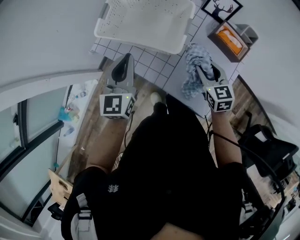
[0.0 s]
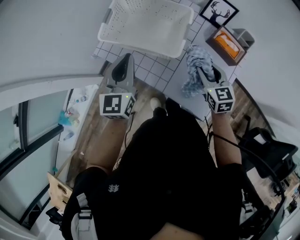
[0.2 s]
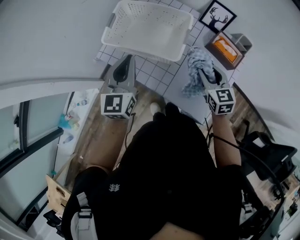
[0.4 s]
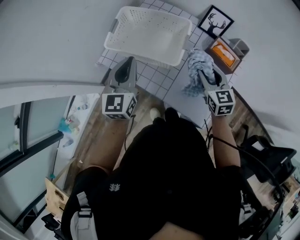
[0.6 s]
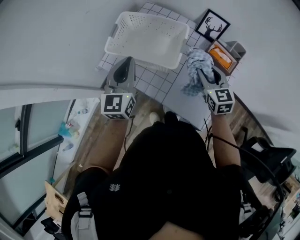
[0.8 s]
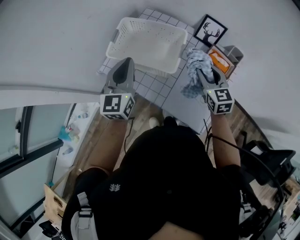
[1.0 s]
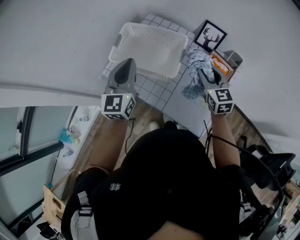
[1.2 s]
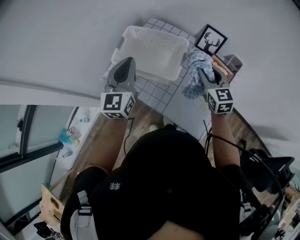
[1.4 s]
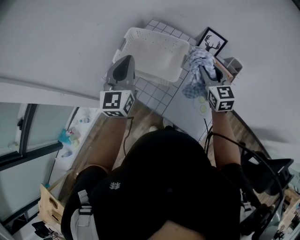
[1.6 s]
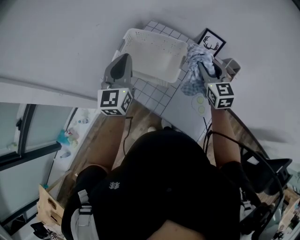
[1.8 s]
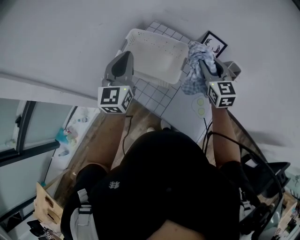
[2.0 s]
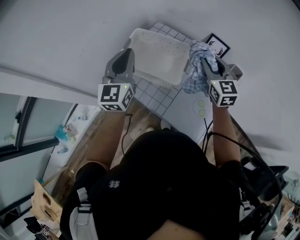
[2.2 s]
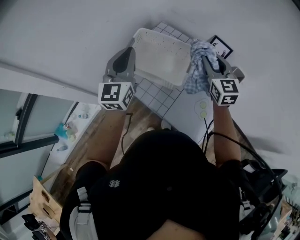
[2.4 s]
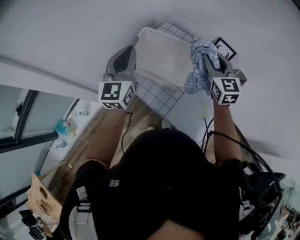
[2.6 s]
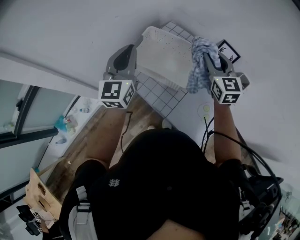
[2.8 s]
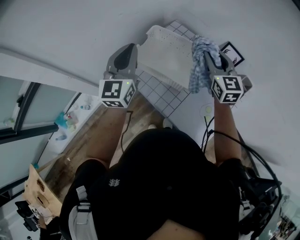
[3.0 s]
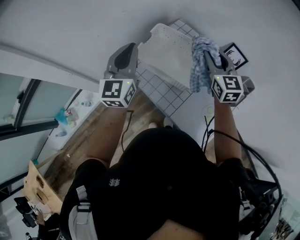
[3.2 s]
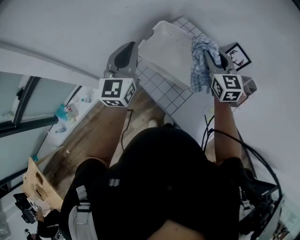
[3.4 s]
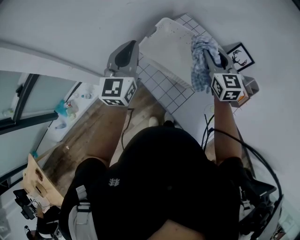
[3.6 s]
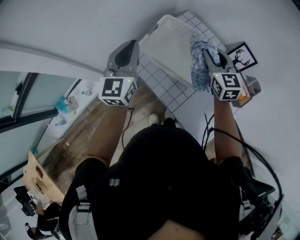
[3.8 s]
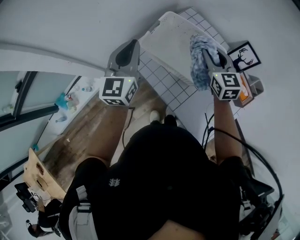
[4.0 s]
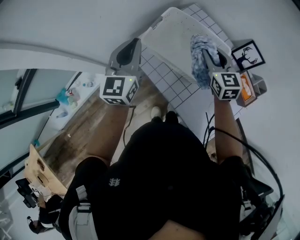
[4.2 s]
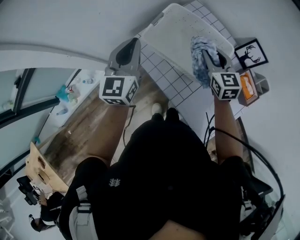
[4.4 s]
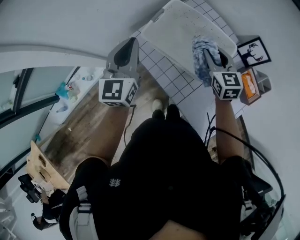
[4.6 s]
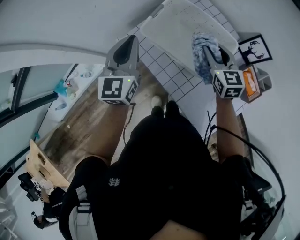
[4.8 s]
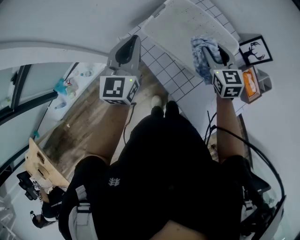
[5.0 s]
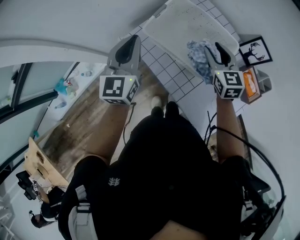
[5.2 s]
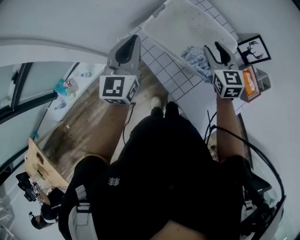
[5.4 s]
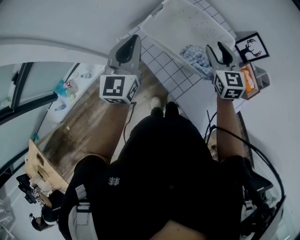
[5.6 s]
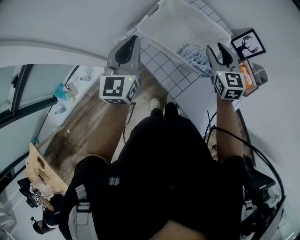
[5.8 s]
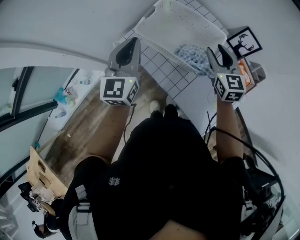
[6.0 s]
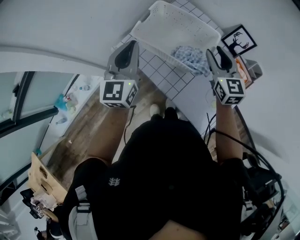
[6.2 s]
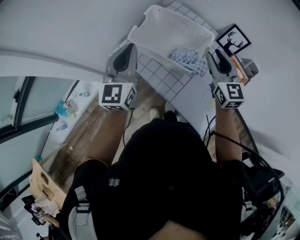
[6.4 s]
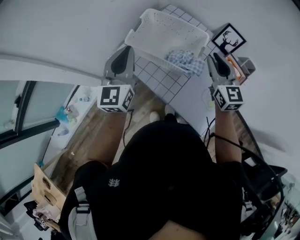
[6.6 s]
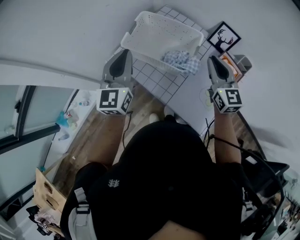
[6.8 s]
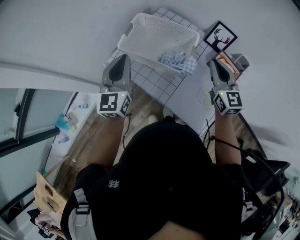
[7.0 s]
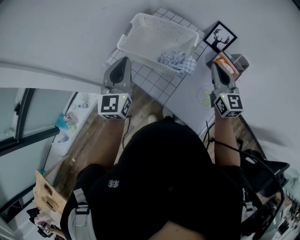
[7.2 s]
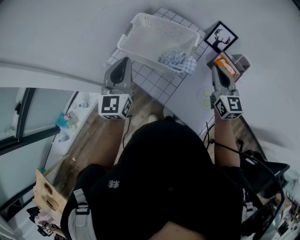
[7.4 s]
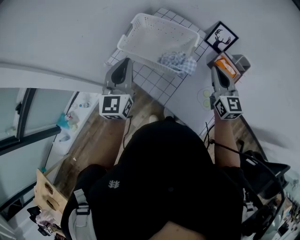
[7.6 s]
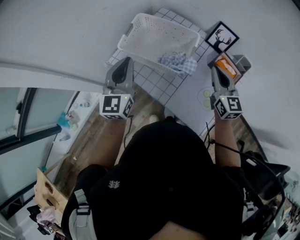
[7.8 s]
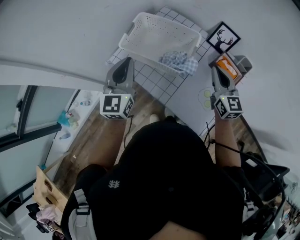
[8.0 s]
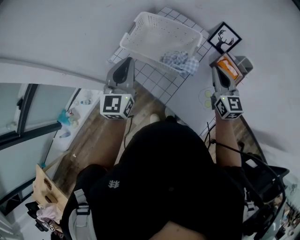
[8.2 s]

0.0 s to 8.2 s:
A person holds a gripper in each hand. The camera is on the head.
0.0 to 1.6 s: The left gripper shifts about 15 cm upward, while the right gripper heads upward and forward, covering some 20 cm.
1.6 to 3.2 s: The left gripper heads to the left, covering approximately 10 cm, while the right gripper shifts roughly 15 cm to the left, forward and upward.
3.2 to 5.0 s: The two grippers go about 15 cm downward.
5.0 to 6.6 s: The left gripper moves backward, upward and to the right, approximately 10 cm; the right gripper goes roughly 20 cm backward, upward and to the right, and turns by approximately 20 degrees.
6.6 to 8.2 s: The right gripper shifts approximately 5 cm to the right.

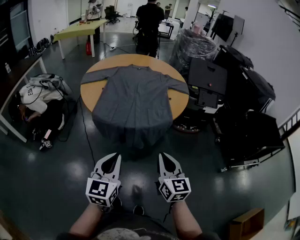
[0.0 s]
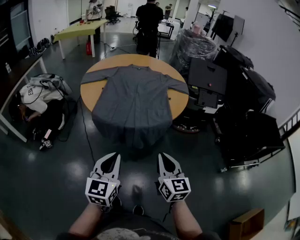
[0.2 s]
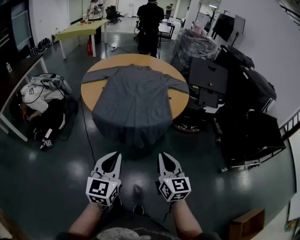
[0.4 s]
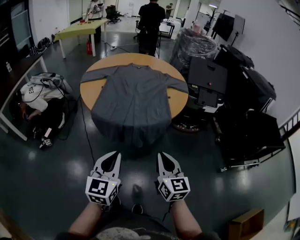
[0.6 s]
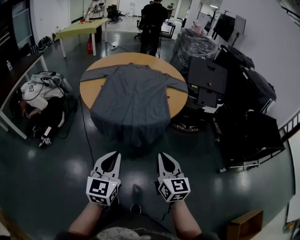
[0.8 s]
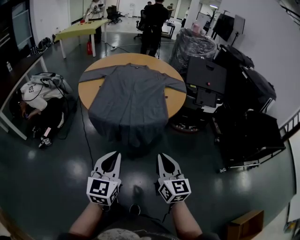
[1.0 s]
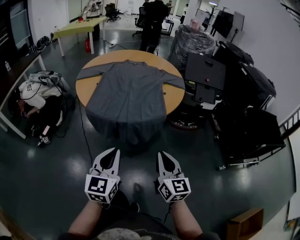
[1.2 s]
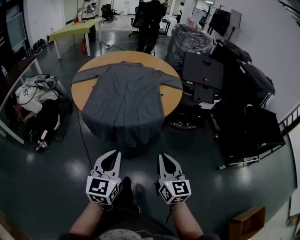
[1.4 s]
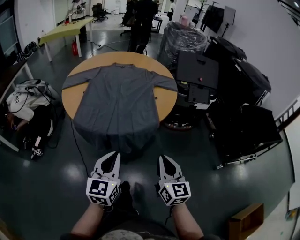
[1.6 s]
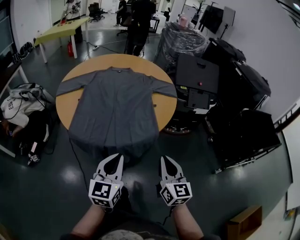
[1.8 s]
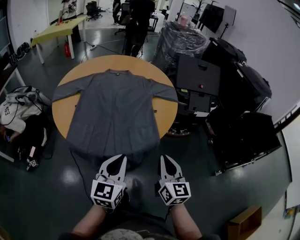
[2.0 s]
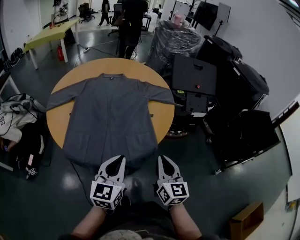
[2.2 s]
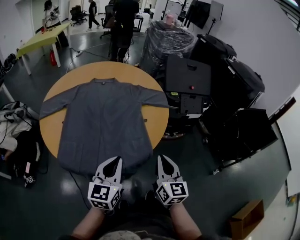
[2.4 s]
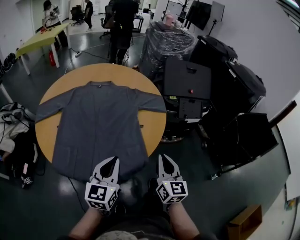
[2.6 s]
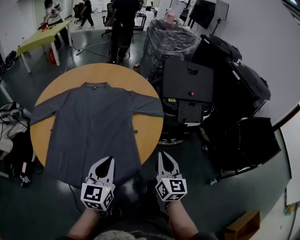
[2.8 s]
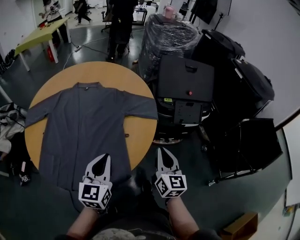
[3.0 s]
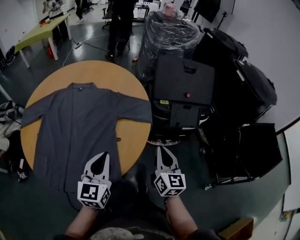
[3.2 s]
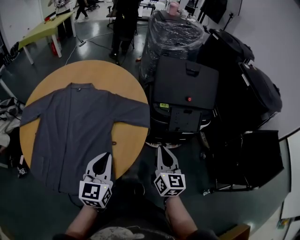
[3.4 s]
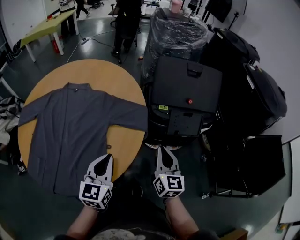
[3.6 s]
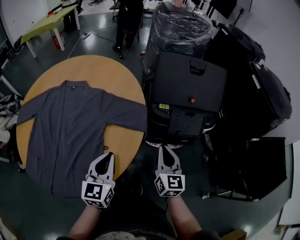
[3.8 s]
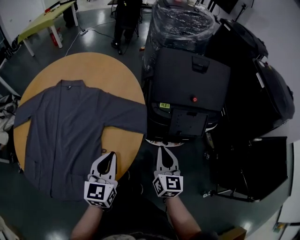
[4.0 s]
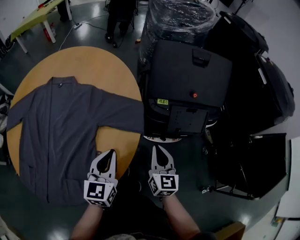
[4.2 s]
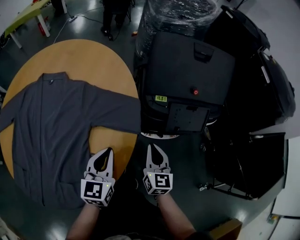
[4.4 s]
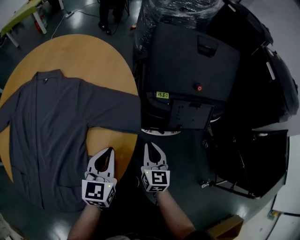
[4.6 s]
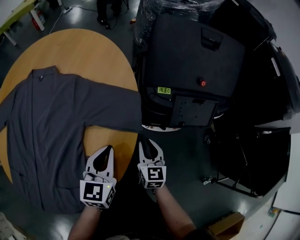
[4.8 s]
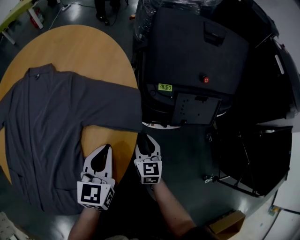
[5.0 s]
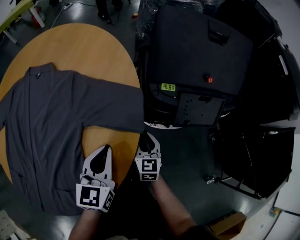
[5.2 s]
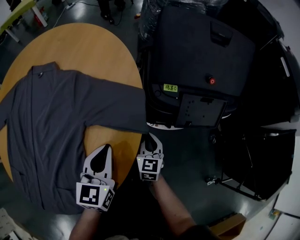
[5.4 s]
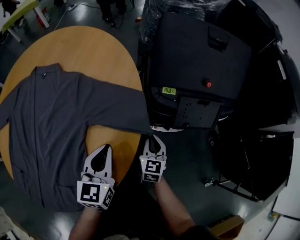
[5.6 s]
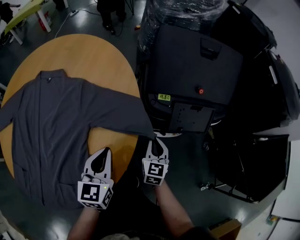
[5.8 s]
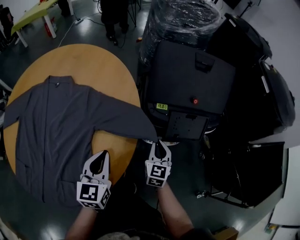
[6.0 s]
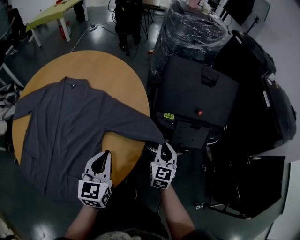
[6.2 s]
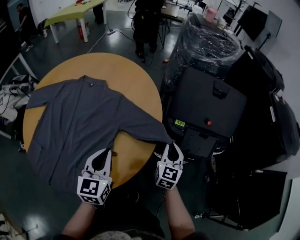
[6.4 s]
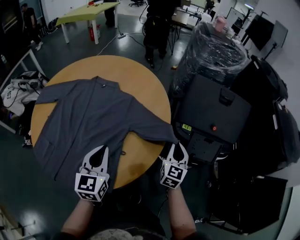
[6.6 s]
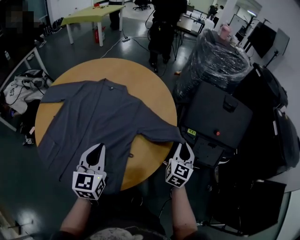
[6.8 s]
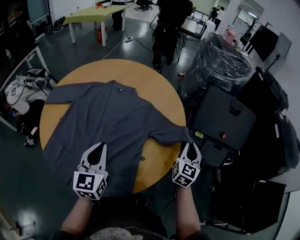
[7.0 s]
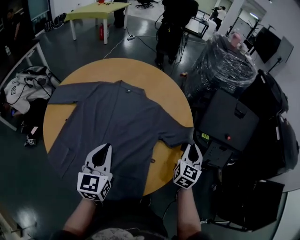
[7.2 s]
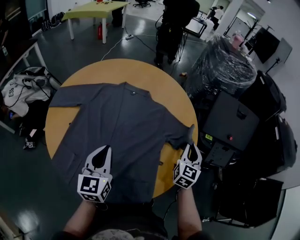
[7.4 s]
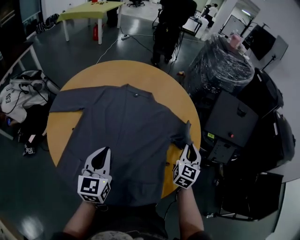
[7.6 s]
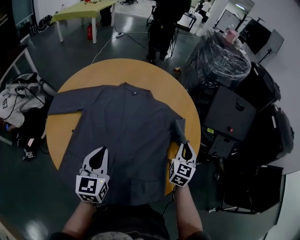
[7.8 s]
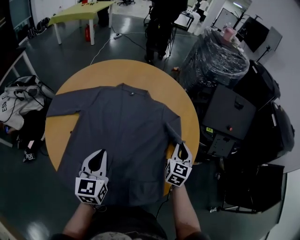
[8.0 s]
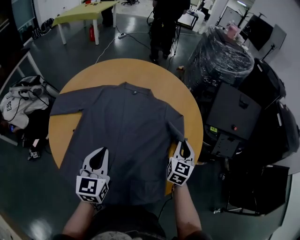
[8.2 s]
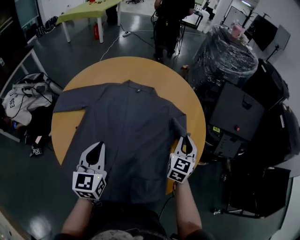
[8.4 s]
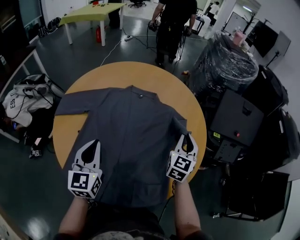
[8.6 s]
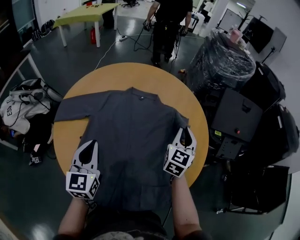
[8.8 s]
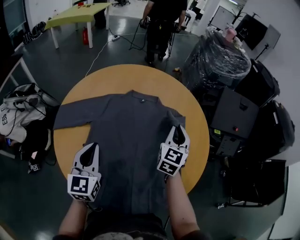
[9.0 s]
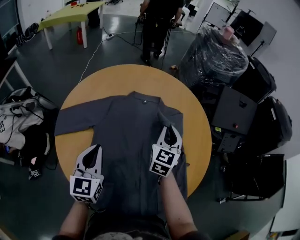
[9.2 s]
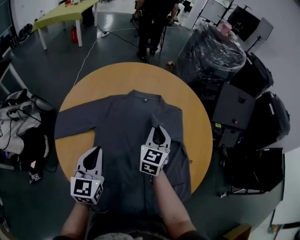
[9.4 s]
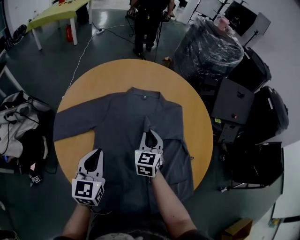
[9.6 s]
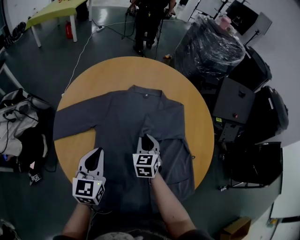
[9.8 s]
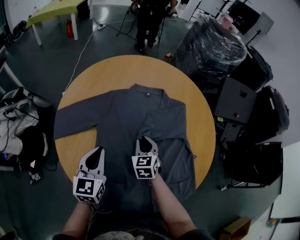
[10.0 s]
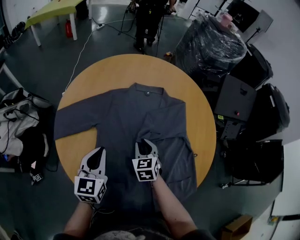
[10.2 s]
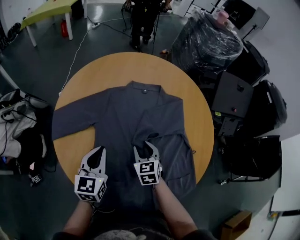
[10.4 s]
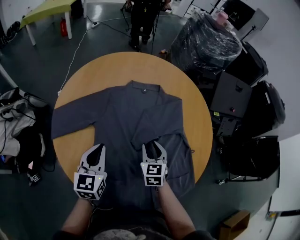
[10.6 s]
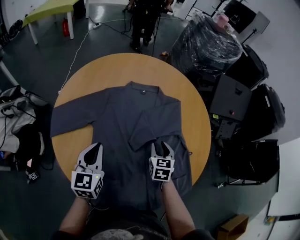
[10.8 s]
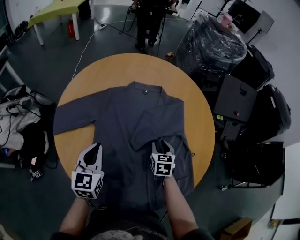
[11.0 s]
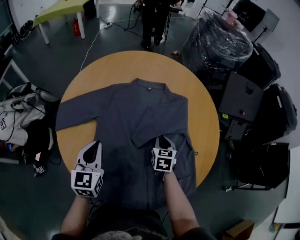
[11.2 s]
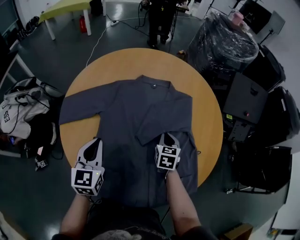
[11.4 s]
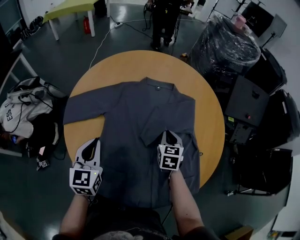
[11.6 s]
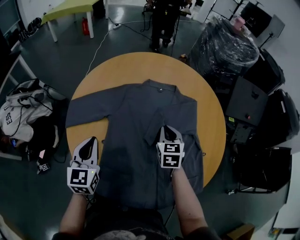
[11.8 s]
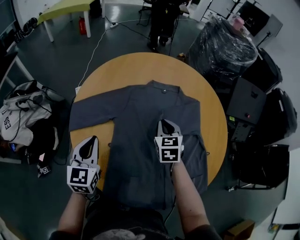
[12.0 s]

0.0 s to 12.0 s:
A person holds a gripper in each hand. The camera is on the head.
0.0 to 1.6 s: The right gripper goes roughly 10 cm to the right. The left gripper heads forward and to the right, covering approximately 10 cm.
1.6 to 3.0 s: Both grippers move forward, about 35 cm.
3.0 to 4.4 s: The left gripper shifts about 30 cm forward, to the right and downward; the right gripper goes roughly 30 cm forward, downward and to the right.
4.4 to 6.0 s: The right gripper moves some 15 cm downward and comes back, and opens and closes again.
6.0 to 7.6 s: The right gripper is displaced to the left and upward by approximately 30 cm. Meanwhile the left gripper moves to the left, about 40 cm.
7.6 to 9.0 s: Both grippers travel together to the left, roughly 15 cm.
9.0 to 10.4 s: The left gripper goes some 10 cm downward and to the left. The right gripper is displaced to the left, downward and backward by about 25 cm, changes its angle by approximately 30 degrees, and opens up.
10.4 to 12.0 s: The right gripper heads upward and forward, covering roughly 10 cm, reaches some 10 cm to the right, then returns, and closes up; the left gripper is displaced to the left by approximately 10 cm.

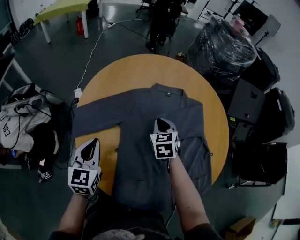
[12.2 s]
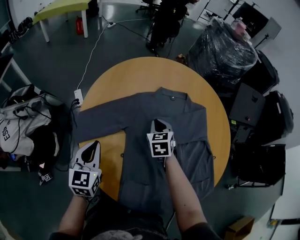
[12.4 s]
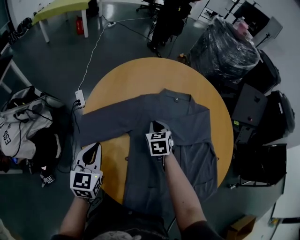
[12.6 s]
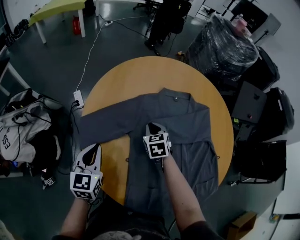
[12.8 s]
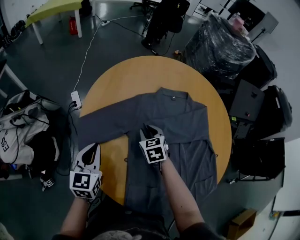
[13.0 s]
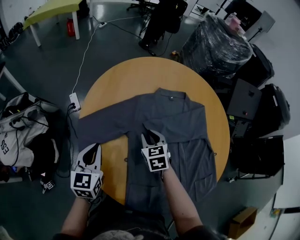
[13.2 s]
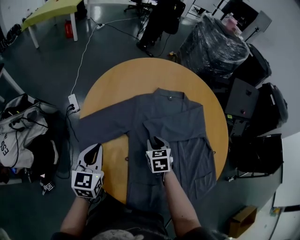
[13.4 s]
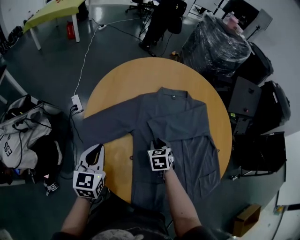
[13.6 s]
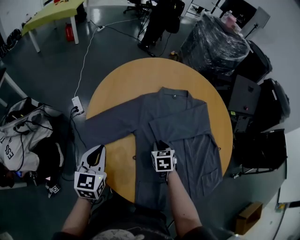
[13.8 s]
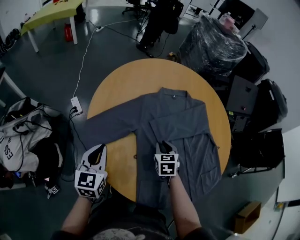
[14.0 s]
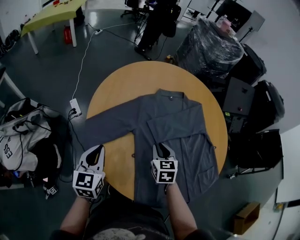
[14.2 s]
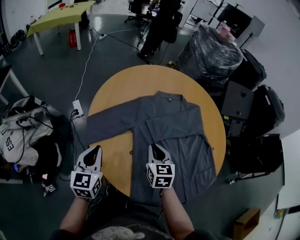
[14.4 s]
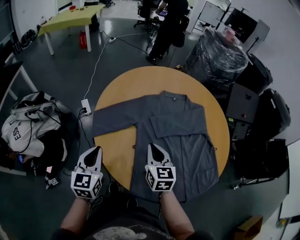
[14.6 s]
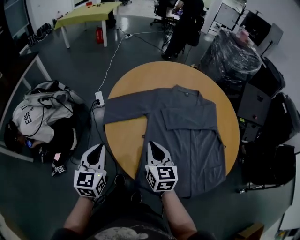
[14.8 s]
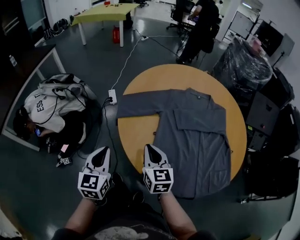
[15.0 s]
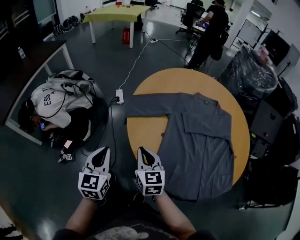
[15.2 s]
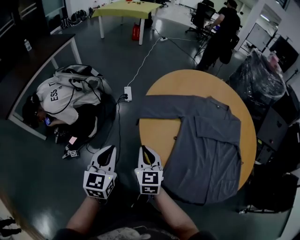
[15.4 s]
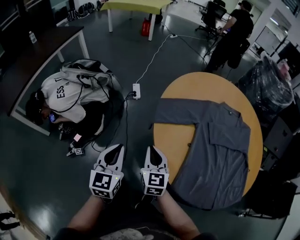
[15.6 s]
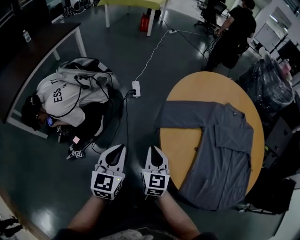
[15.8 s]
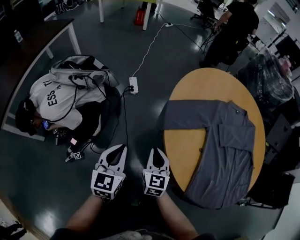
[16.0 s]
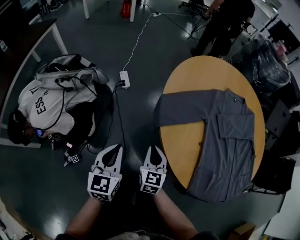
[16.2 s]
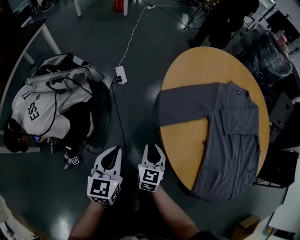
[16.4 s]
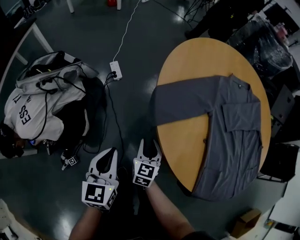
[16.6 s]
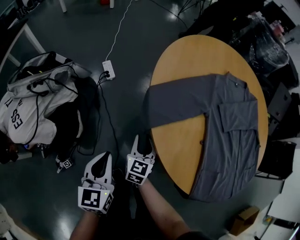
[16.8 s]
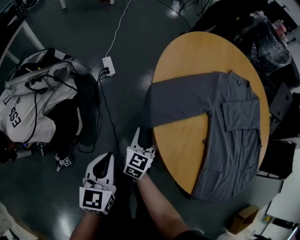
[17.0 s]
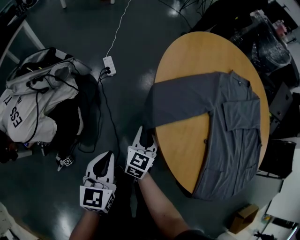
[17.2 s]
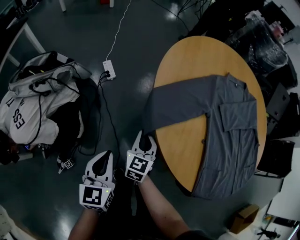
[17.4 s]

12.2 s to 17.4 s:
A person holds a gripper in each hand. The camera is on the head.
12.2 to 14.0 s: The left gripper travels to the left by about 5 cm. Meanwhile the right gripper travels downward and backward by approximately 10 cm.
14.0 to 15.6 s: The left gripper changes place by some 25 cm, and changes its angle by some 20 degrees, while the right gripper ends up approximately 40 cm from where it was, and rotates roughly 40 degrees.
15.6 to 17.4 s: The right gripper shifts about 20 cm downward and forward, and rotates some 30 degrees; the left gripper travels downward, forward and to the left by roughly 20 cm.
